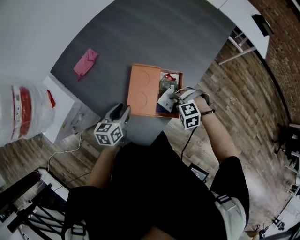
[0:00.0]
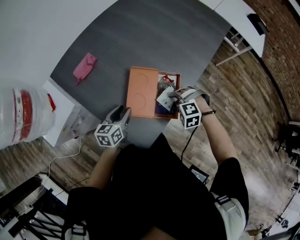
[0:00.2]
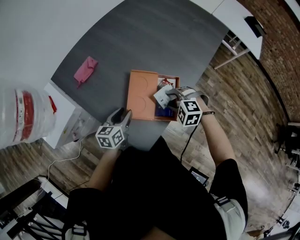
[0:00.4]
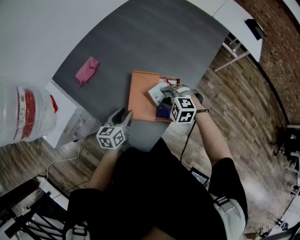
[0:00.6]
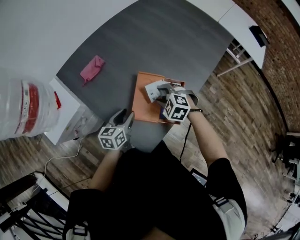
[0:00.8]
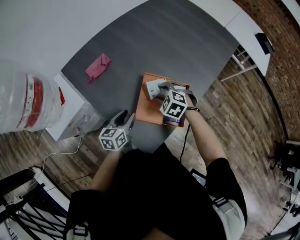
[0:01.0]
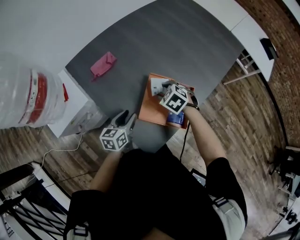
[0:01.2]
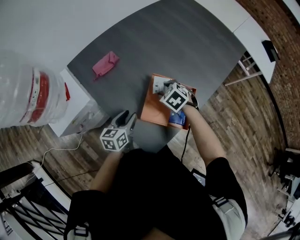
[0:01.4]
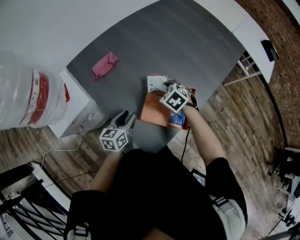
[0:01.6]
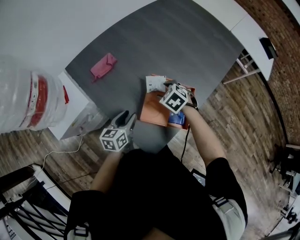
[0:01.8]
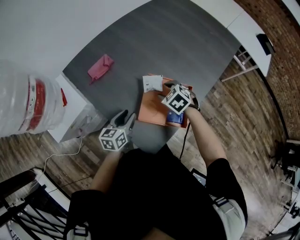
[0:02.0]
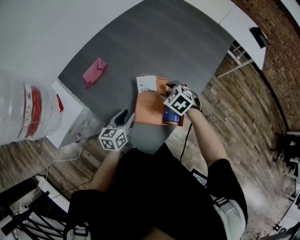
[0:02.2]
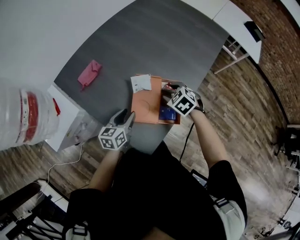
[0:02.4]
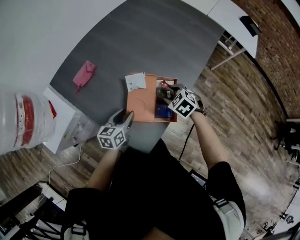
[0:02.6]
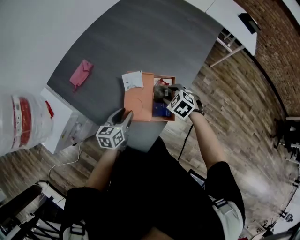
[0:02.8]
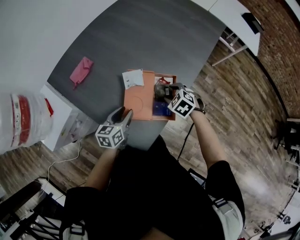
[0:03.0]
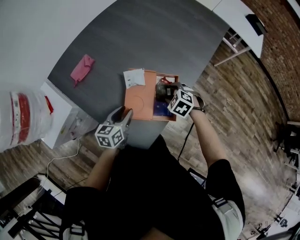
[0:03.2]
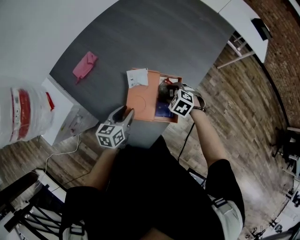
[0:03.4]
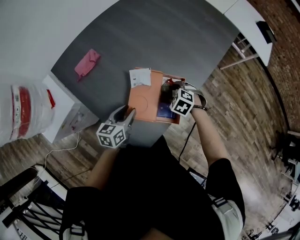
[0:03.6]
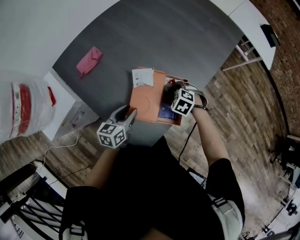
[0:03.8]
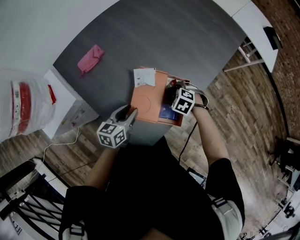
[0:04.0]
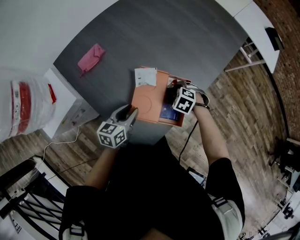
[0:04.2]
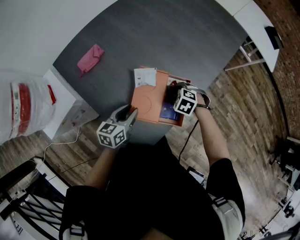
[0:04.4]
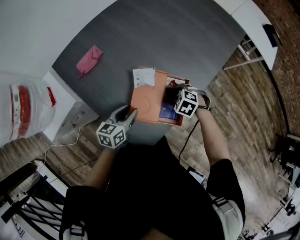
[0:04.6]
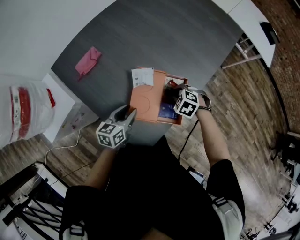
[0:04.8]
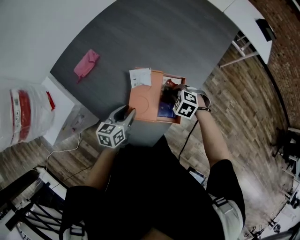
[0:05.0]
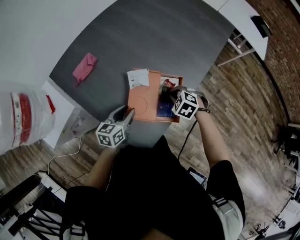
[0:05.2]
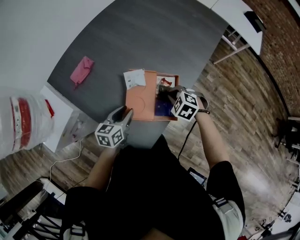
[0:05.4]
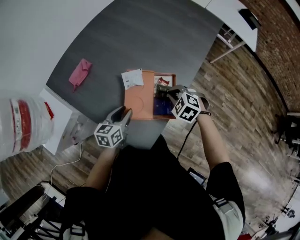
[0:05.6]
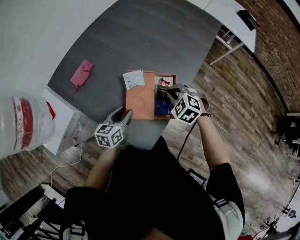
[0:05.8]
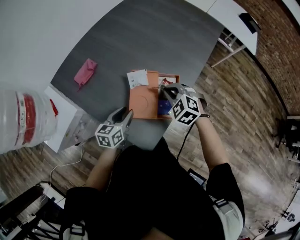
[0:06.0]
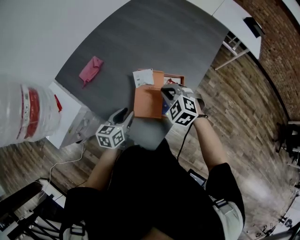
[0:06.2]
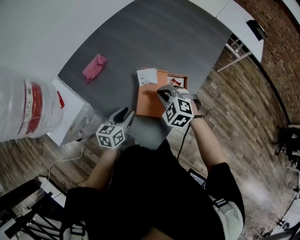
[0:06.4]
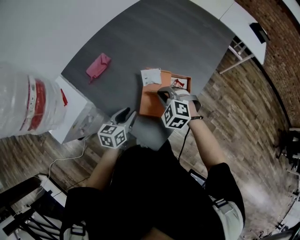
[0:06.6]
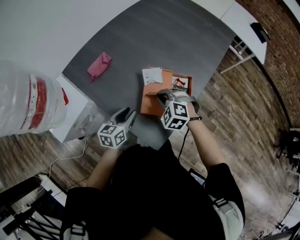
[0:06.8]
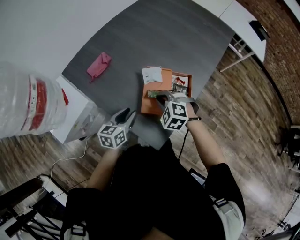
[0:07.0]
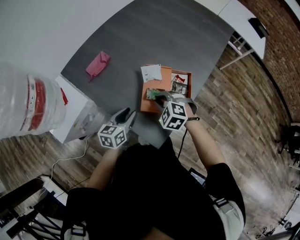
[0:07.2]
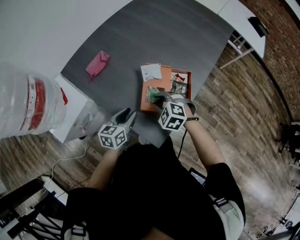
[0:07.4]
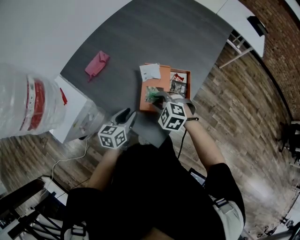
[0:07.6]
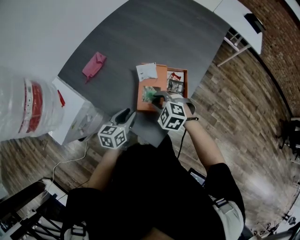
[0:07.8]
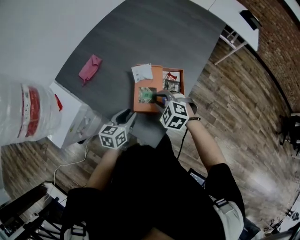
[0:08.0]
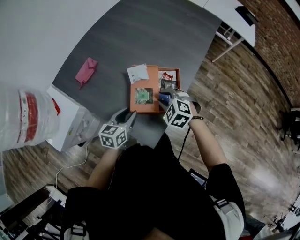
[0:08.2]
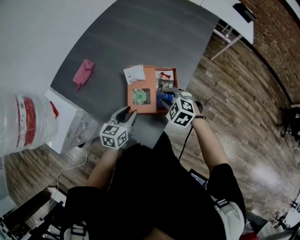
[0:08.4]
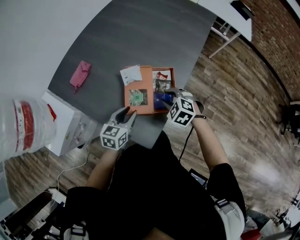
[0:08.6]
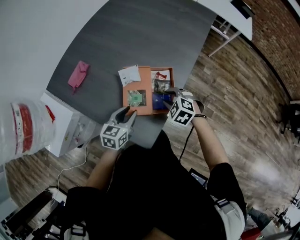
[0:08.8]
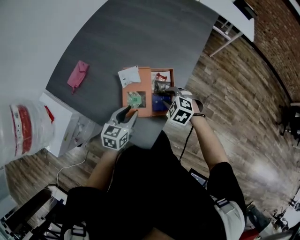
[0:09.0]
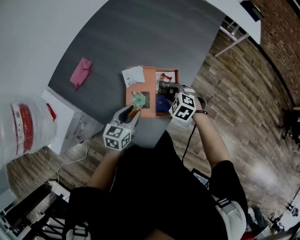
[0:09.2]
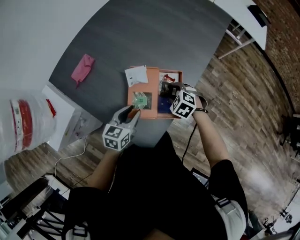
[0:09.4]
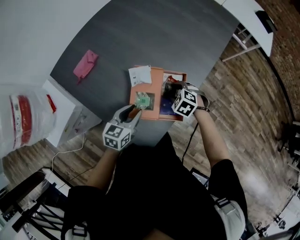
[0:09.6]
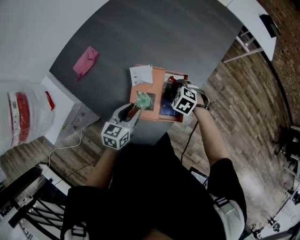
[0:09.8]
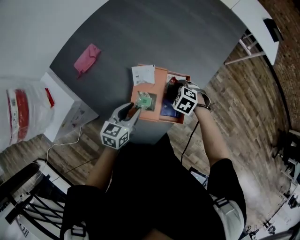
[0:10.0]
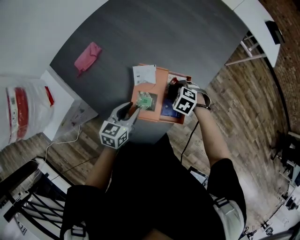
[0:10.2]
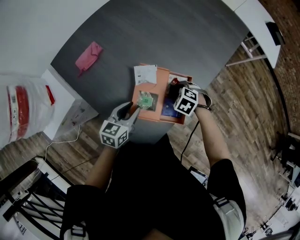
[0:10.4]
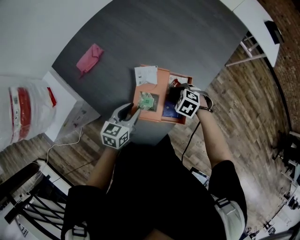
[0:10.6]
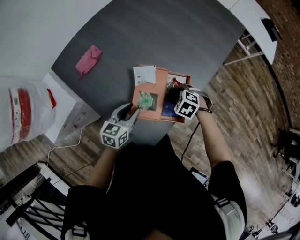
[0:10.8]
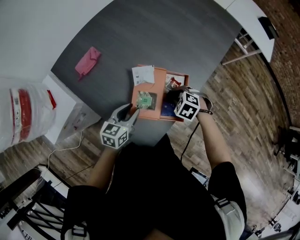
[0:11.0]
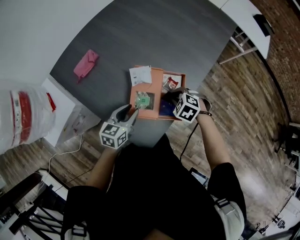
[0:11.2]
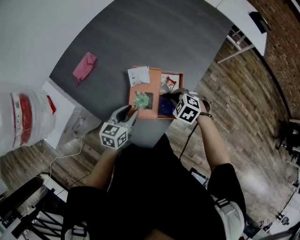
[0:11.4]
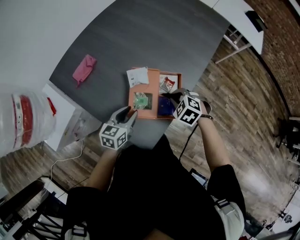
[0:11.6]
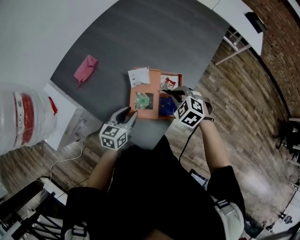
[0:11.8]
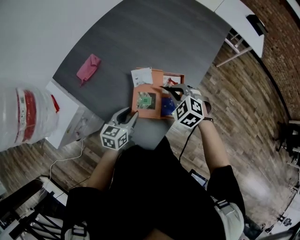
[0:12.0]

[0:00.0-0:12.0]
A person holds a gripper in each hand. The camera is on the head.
0:00.0 to 0:01.6: The right gripper moves roughly 20 cm, and twists some 50 degrees clockwise, seen from behind.
0:01.6 to 0:03.0: The left gripper travels to the right by roughly 5 cm; the right gripper goes approximately 15 cm to the right and backward.
0:03.0 to 0:04.4: The right gripper heads downward, covering roughly 5 cm, and turns by about 20 degrees.
0:04.4 to 0:06.0: The right gripper moves upward, approximately 15 cm, rotates about 30 degrees, and closes up.
0:06.0 to 0:07.6: The left gripper changes place by roughly 5 cm, while the right gripper goes some 15 cm to the left, backward and downward, and opens up.
0:07.6 to 0:09.0: The right gripper is displaced to the right by approximately 15 cm. The left gripper moves to the right, some 10 cm.
0:09.0 to 0:10.4: The right gripper goes some 5 cm downward.
0:10.4 to 0:12.0: The right gripper goes roughly 15 cm upward, swivels approximately 30 degrees, and closes.

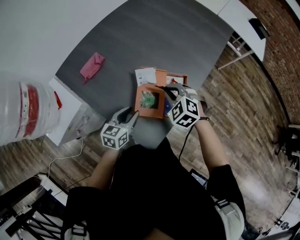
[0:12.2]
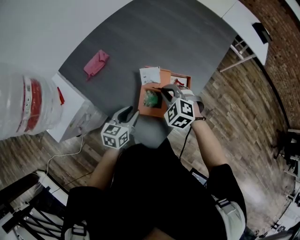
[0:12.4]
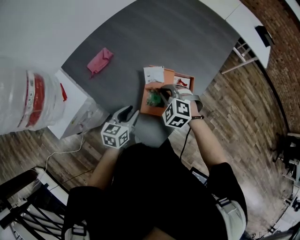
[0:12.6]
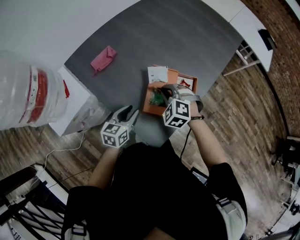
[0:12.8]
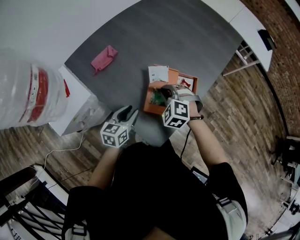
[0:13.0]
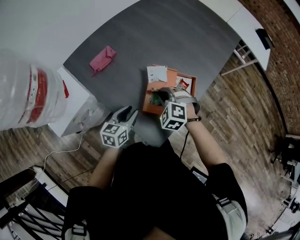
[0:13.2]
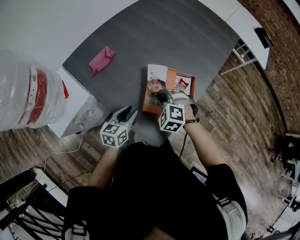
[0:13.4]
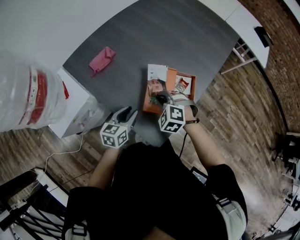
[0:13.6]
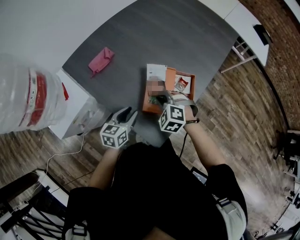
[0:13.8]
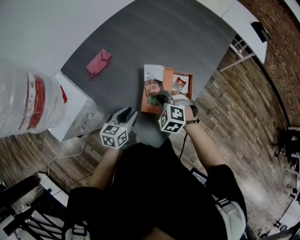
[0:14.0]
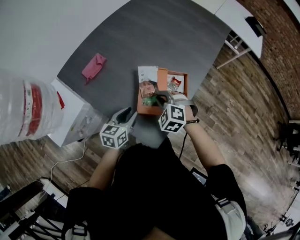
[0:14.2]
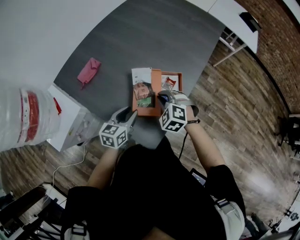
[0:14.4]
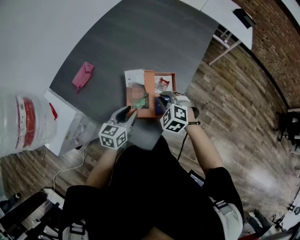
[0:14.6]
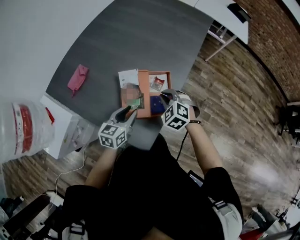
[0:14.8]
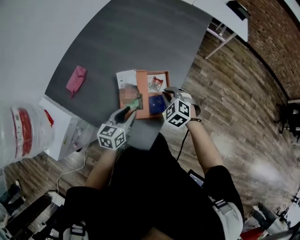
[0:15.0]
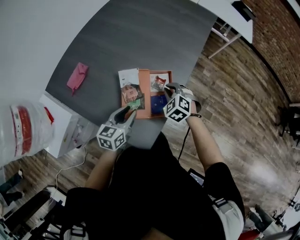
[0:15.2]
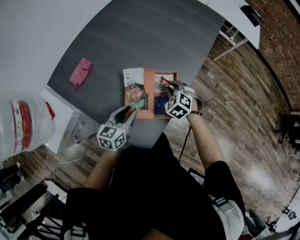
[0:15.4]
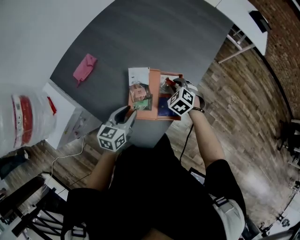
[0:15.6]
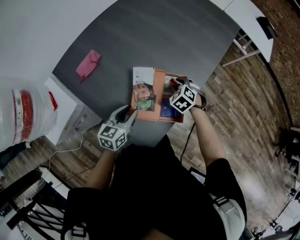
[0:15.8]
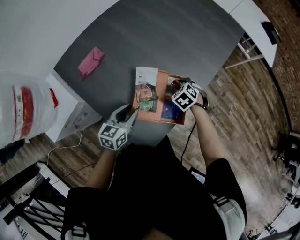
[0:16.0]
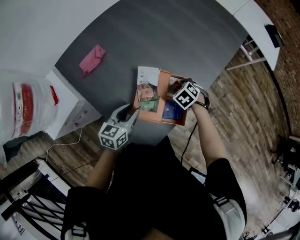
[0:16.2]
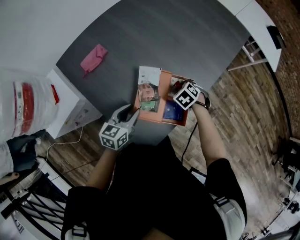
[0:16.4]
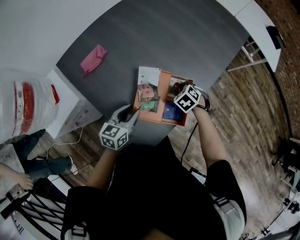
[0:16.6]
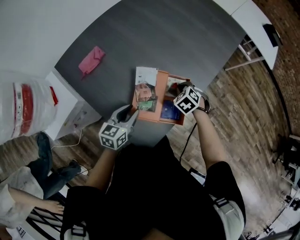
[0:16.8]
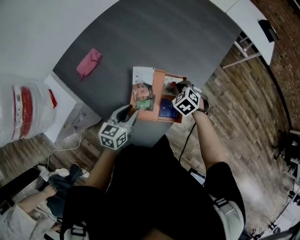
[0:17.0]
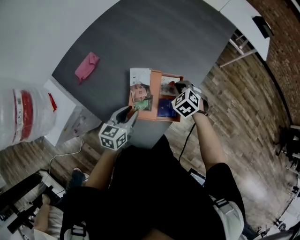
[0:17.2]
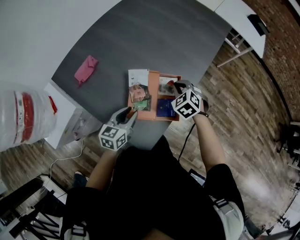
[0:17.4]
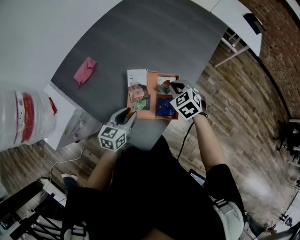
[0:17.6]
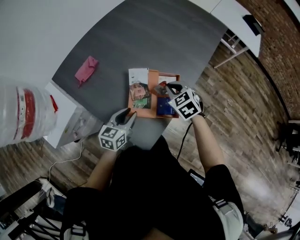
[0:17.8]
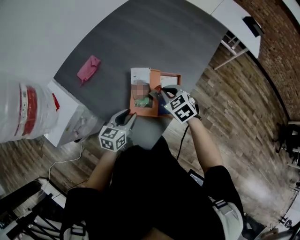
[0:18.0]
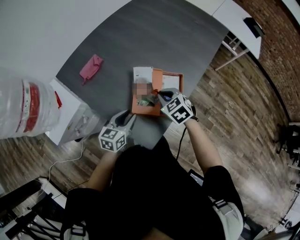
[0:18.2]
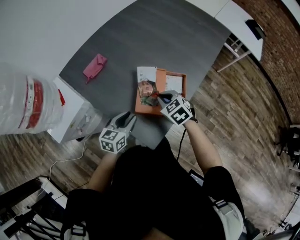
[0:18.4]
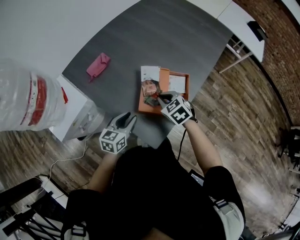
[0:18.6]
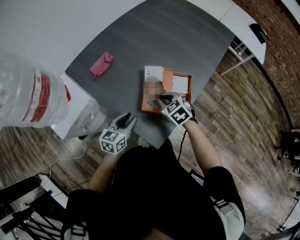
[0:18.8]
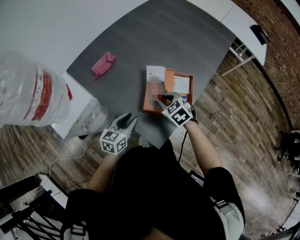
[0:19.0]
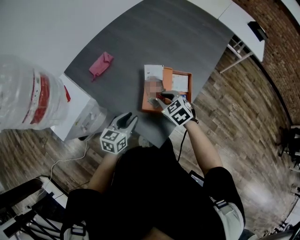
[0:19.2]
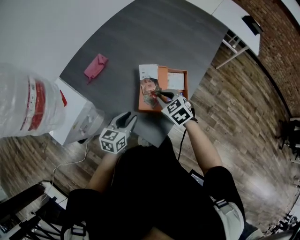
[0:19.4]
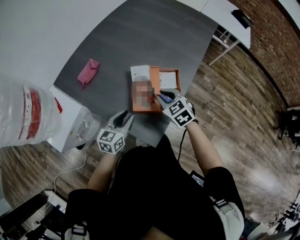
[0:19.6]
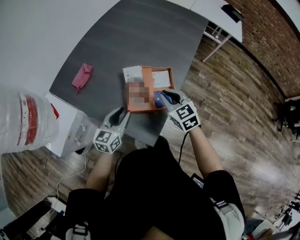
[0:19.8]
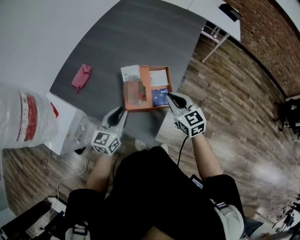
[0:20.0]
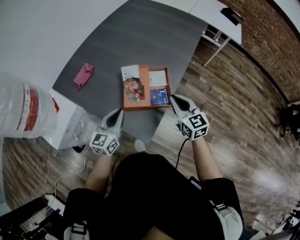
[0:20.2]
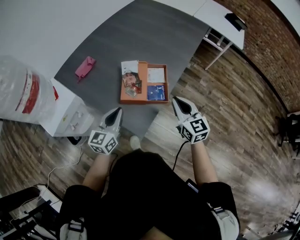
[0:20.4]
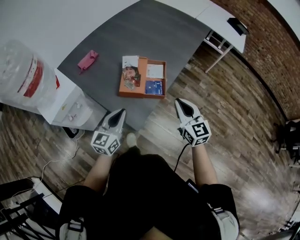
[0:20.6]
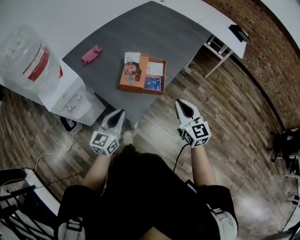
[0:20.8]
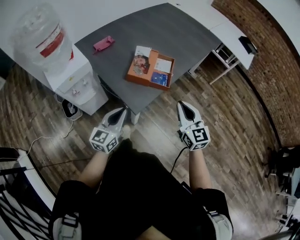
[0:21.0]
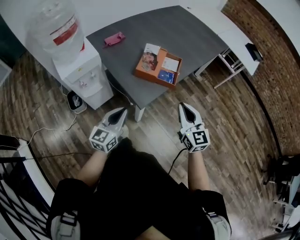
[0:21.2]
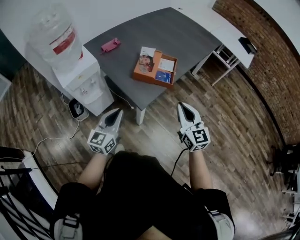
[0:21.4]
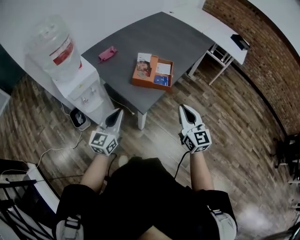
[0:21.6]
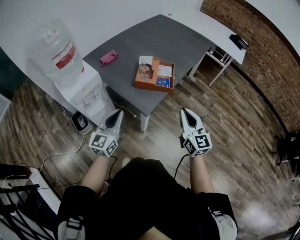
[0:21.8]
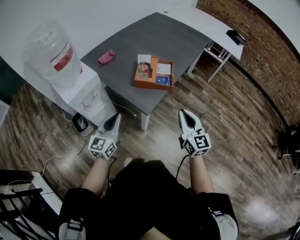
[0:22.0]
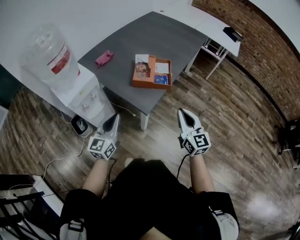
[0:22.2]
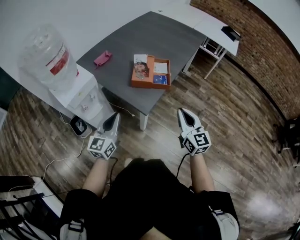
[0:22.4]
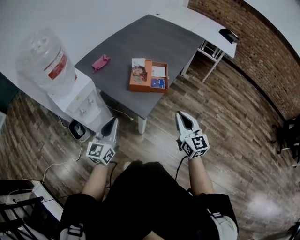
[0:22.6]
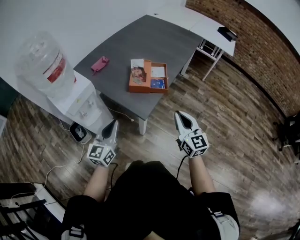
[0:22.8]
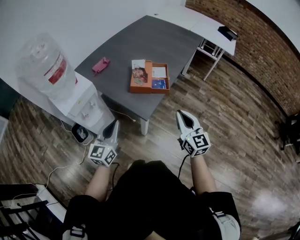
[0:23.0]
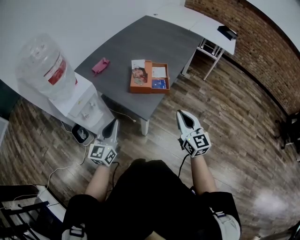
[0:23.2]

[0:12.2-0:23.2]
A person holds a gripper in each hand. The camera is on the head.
0:12.2 to 0:13.8: The right gripper shifts some 5 cm to the left.
0:13.8 to 0:15.4: The left gripper goes roughly 5 cm to the right. Meanwhile the right gripper travels to the right and forward by some 15 cm, and turns by approximately 30 degrees.
0:17.0 to 0:18.4: The left gripper ends up roughly 5 cm from where it was. The right gripper travels to the left, backward and upward by about 15 cm, and rotates about 20 degrees.
0:18.4 to 0:20.0: The right gripper travels to the right and upward by roughly 10 cm, and swivels roughly 40 degrees. The left gripper goes approximately 5 cm upward.
0:20.0 to 0:21.6: The grippers both shift backward by approximately 20 cm. The right gripper rotates some 20 degrees; the left gripper changes its angle by some 20 degrees.
0:21.6 to 0:23.2: The grippers stay close to where they were, moving slightly.

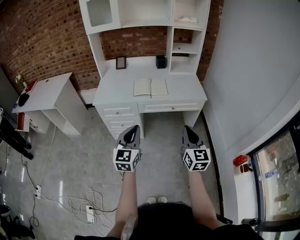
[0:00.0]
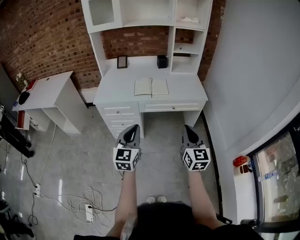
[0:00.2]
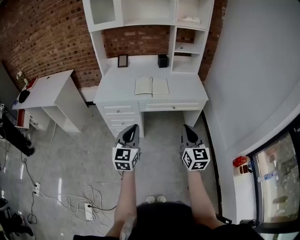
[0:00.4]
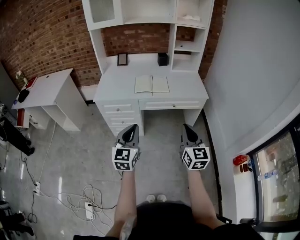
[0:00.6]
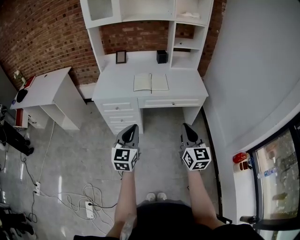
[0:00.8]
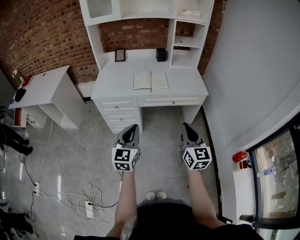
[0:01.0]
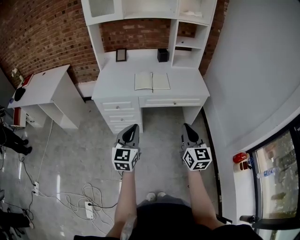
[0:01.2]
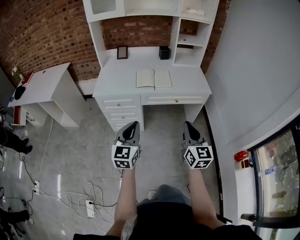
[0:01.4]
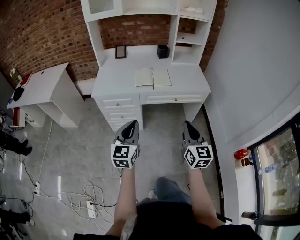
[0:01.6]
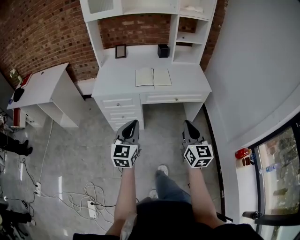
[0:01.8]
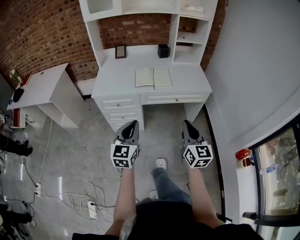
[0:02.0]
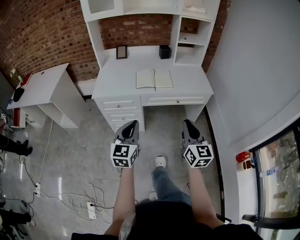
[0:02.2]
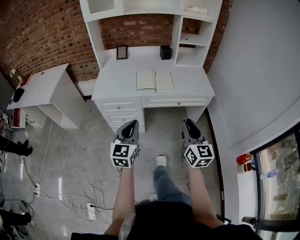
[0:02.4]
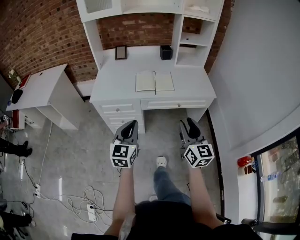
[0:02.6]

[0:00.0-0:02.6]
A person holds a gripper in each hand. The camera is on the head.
0:00.0 to 0:01.2: The grippers make only small movements.
0:01.2 to 0:02.6: The two grippers go about 10 cm forward. The right gripper opens its fingers.
